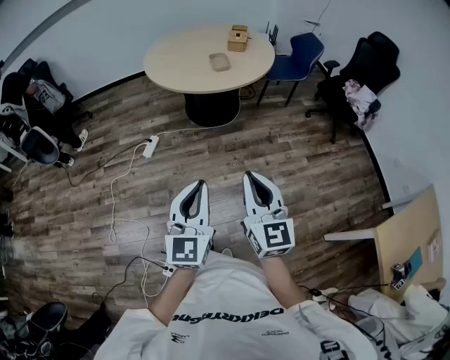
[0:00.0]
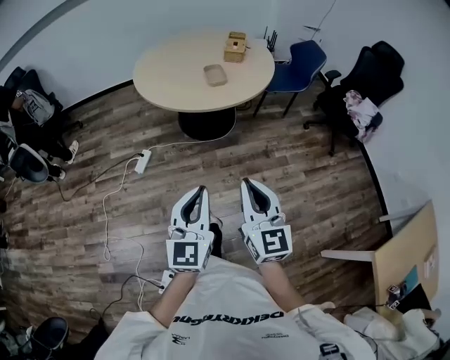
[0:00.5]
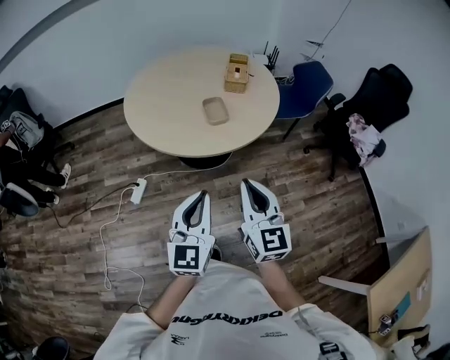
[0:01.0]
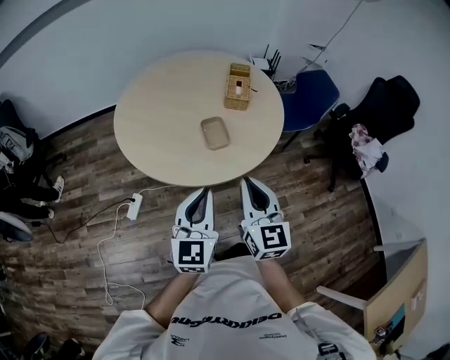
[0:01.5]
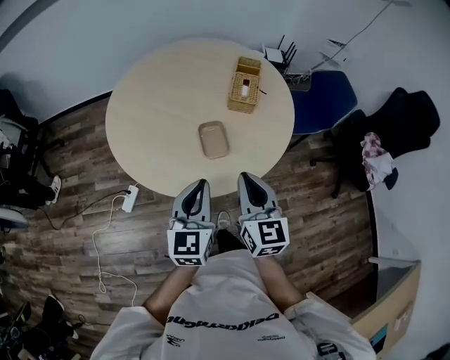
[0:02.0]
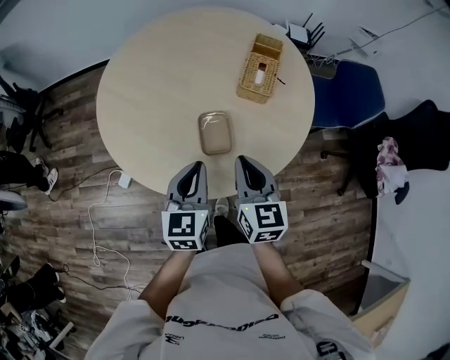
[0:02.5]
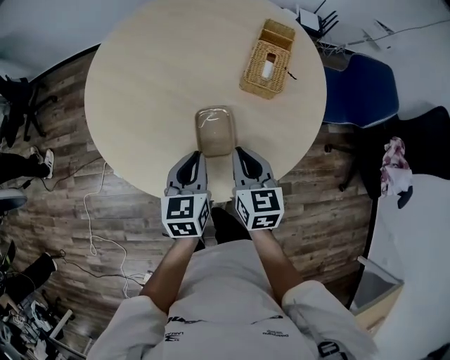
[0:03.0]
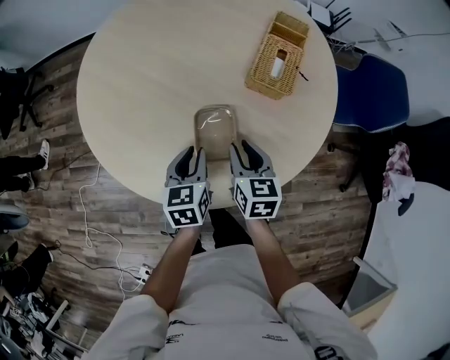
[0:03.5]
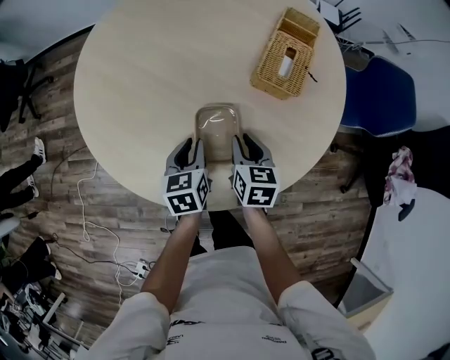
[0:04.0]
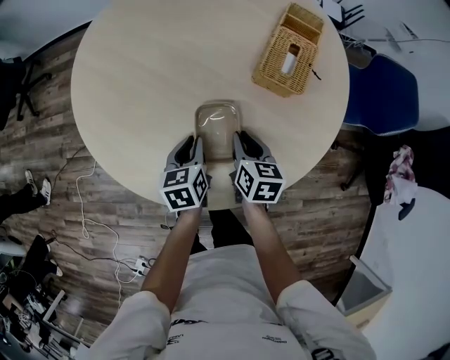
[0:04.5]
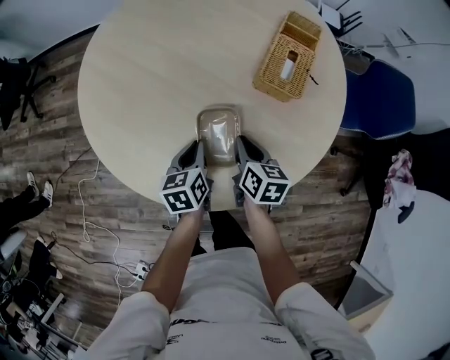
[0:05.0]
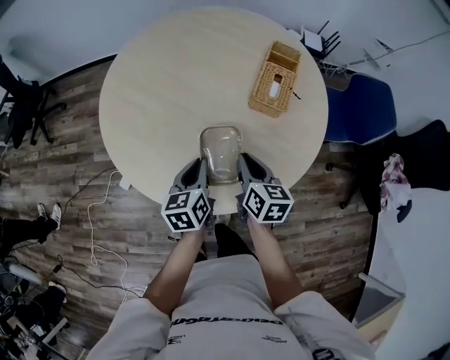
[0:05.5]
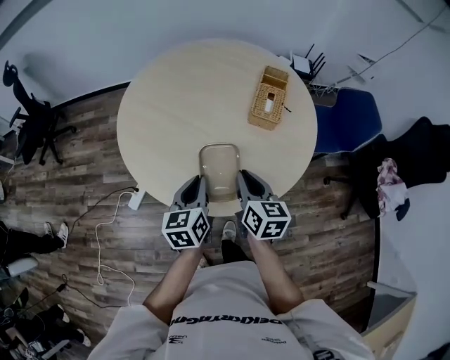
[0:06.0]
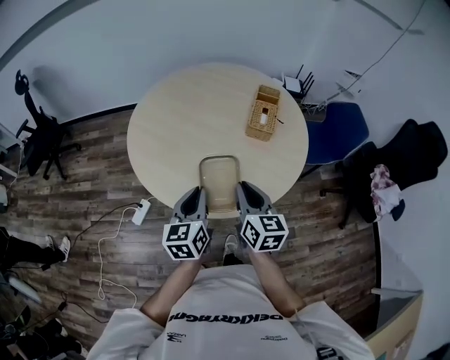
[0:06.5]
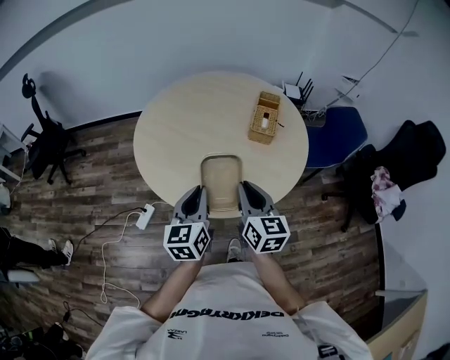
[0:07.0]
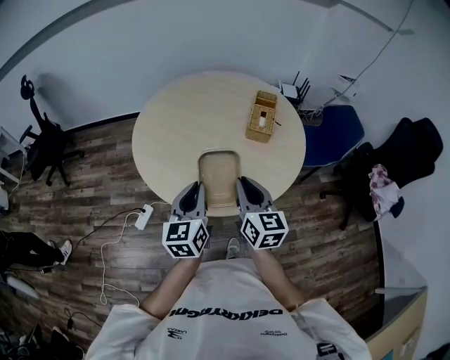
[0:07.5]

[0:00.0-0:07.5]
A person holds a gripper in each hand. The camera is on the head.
0:00.0 to 0:02.0: Both grippers are carried forward, some 70 cm.
0:02.0 to 0:04.0: The two grippers go roughly 35 cm downward and forward. The right gripper angles its fingers downward, by roughly 30 degrees, and opens up. The left gripper tips its fingers downward by roughly 30 degrees.
0:04.0 to 0:05.5: Both grippers move upward, some 10 cm.
0:05.5 to 0:07.5: Both grippers travel together upward and backward, some 25 cm. The right gripper swivels roughly 20 degrees, while the left gripper rotates roughly 30 degrees.

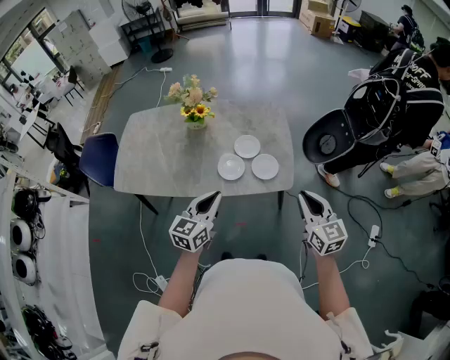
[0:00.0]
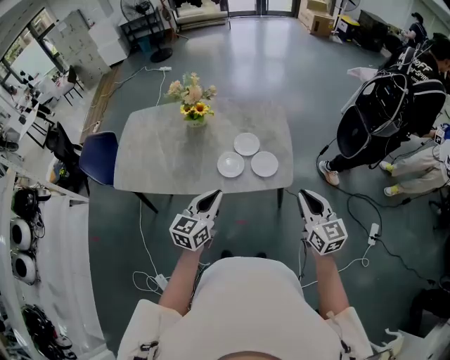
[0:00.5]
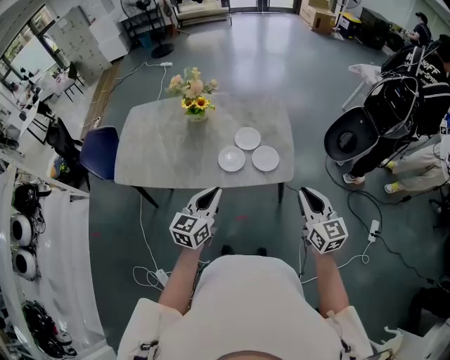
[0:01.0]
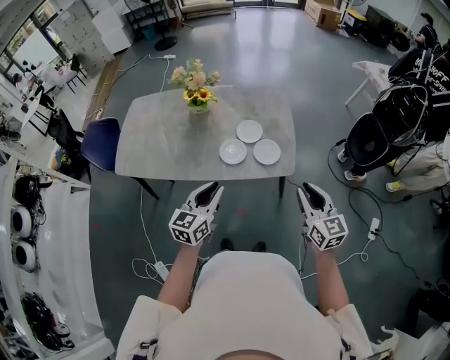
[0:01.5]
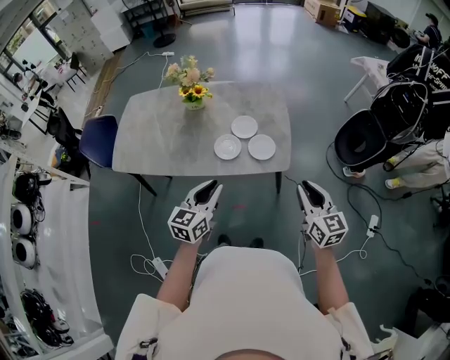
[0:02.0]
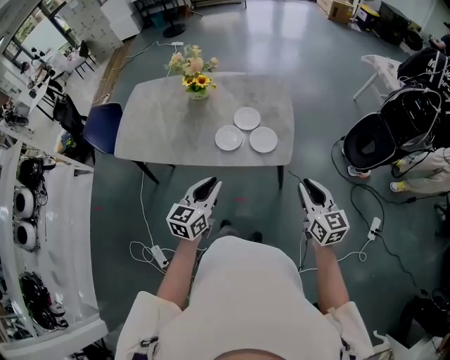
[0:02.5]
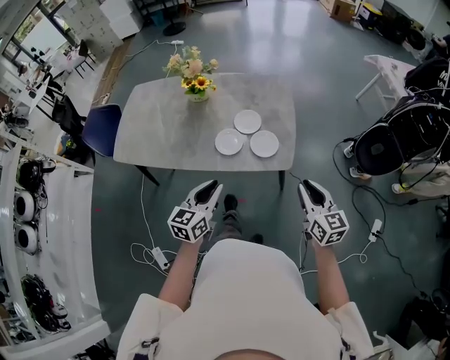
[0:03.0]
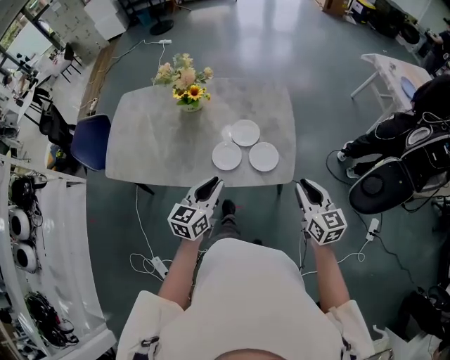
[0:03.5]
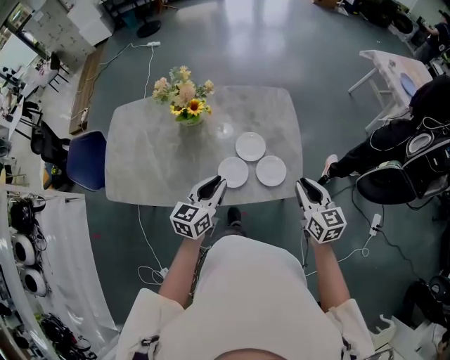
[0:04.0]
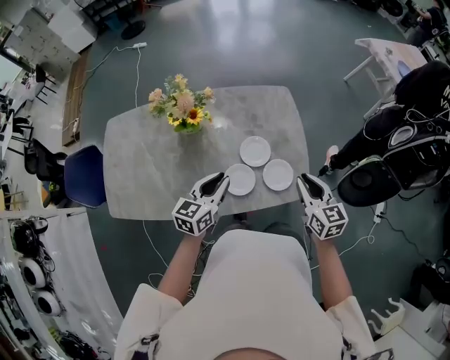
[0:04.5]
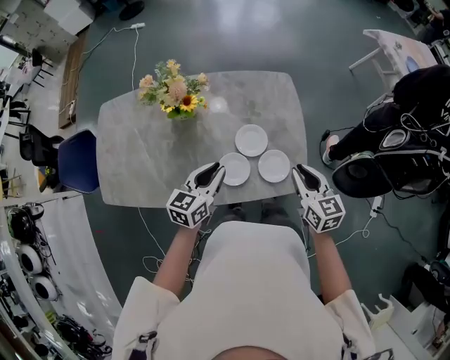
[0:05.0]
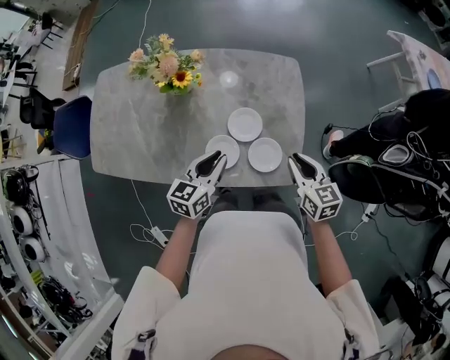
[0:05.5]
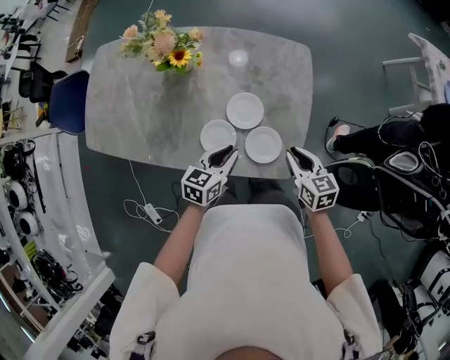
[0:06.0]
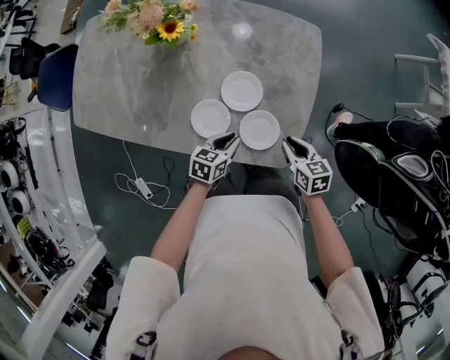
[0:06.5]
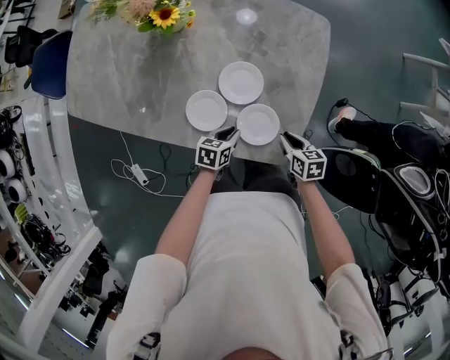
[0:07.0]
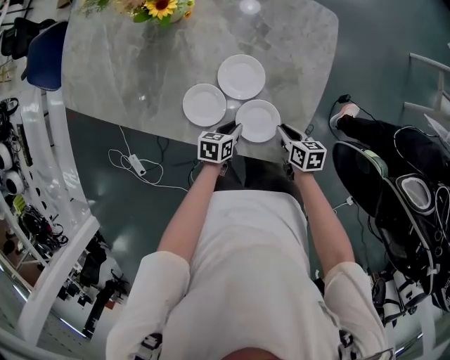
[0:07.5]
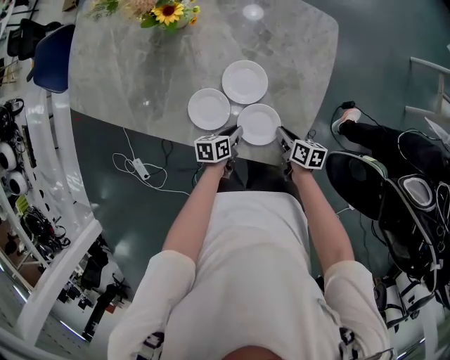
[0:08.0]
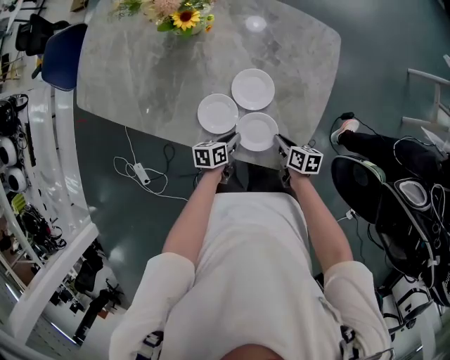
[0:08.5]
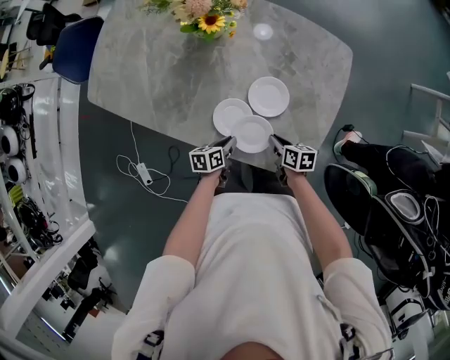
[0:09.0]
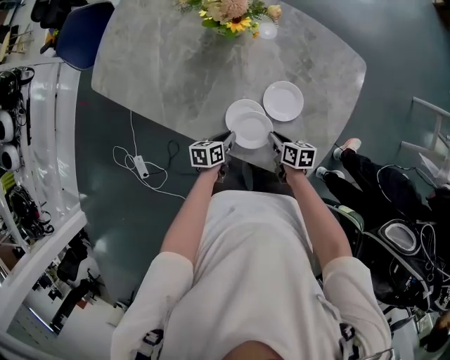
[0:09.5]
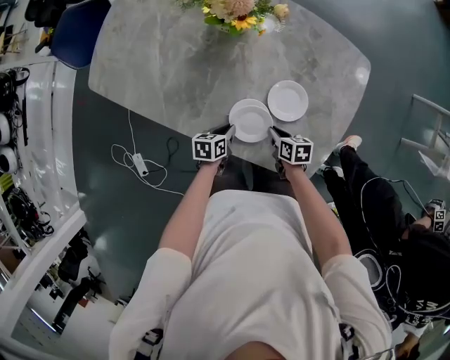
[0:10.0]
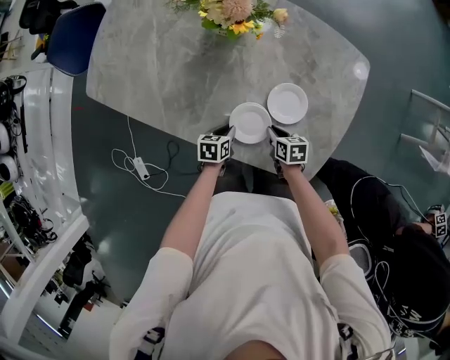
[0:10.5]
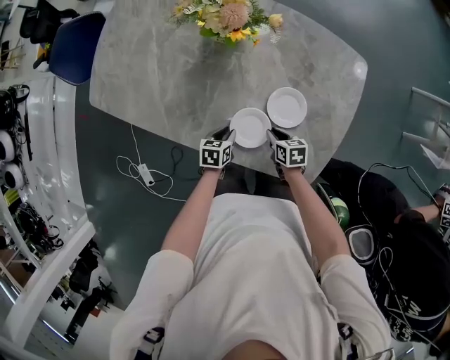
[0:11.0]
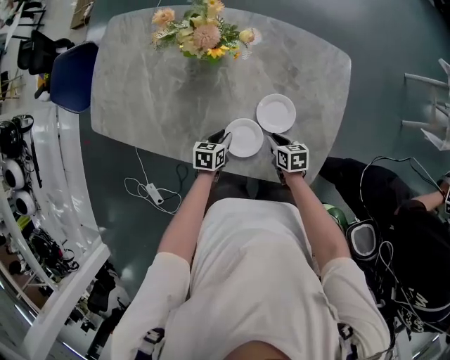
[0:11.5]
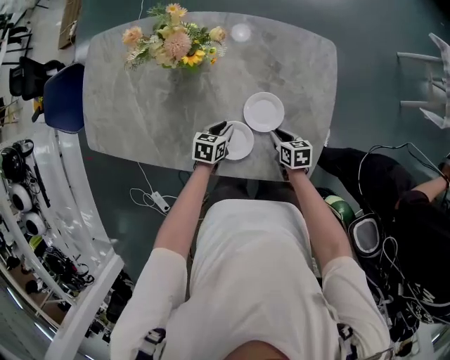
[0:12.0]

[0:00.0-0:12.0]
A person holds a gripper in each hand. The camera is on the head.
0:00.0 to 0:02.0: The left gripper changes place by some 5 cm. The right gripper moves some 5 cm.
0:02.0 to 0:04.0: Both grippers travel together forward, approximately 25 cm.
0:04.0 to 0:06.0: The left gripper moves downward, to the right and forward, approximately 20 cm. Meanwhile the right gripper shifts approximately 20 cm downward and forward, and rotates some 20 degrees.
0:06.0 to 0:08.0: Both grippers move downward, some 25 cm. The right gripper rotates approximately 40 degrees. The left gripper changes its angle by approximately 40 degrees.
0:08.0 to 0:10.0: The grippers both shift to the left by approximately 15 cm. The right gripper changes its angle by roughly 20 degrees.
0:10.0 to 0:12.0: The left gripper travels forward and to the right by roughly 10 cm, and turns by approximately 30 degrees; the right gripper travels to the right by approximately 10 cm.

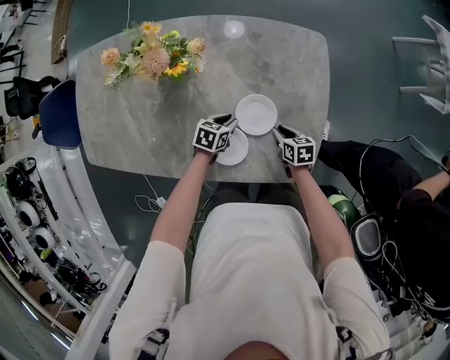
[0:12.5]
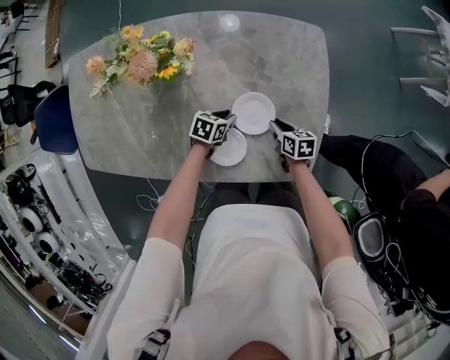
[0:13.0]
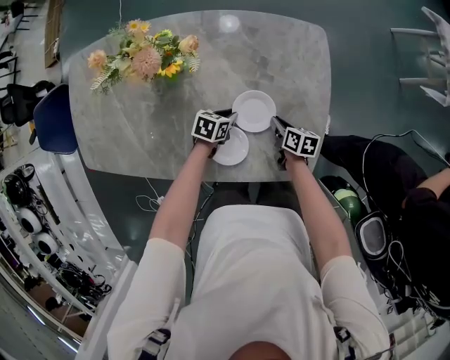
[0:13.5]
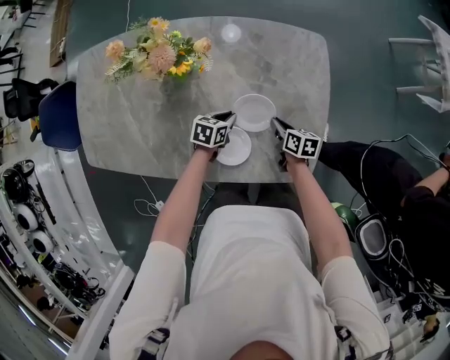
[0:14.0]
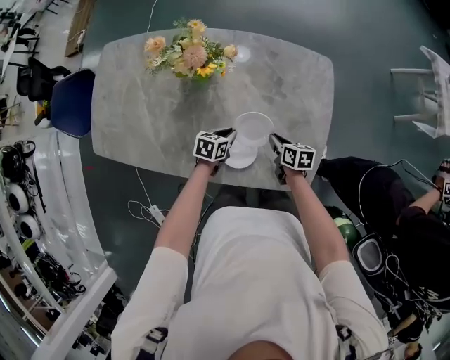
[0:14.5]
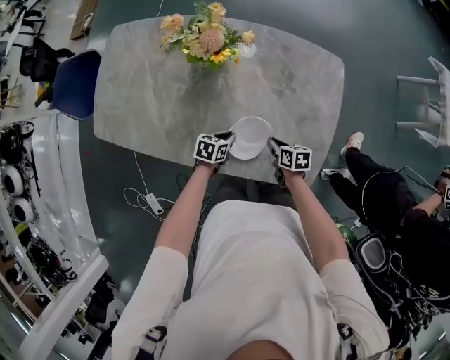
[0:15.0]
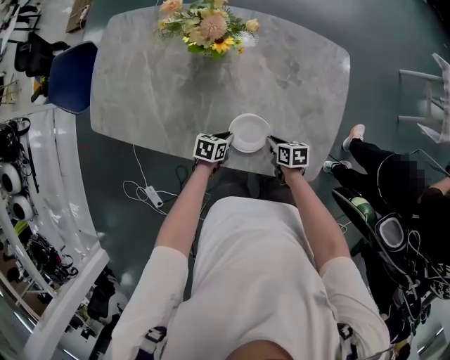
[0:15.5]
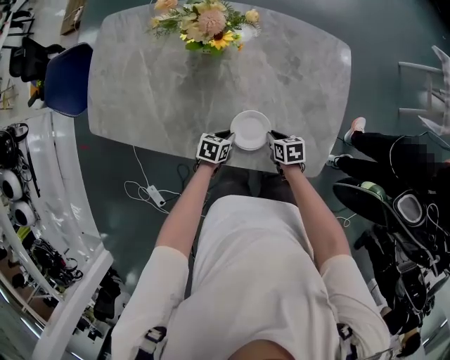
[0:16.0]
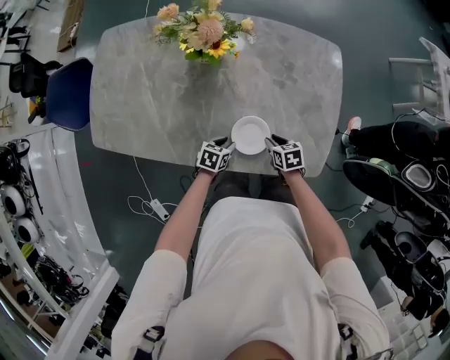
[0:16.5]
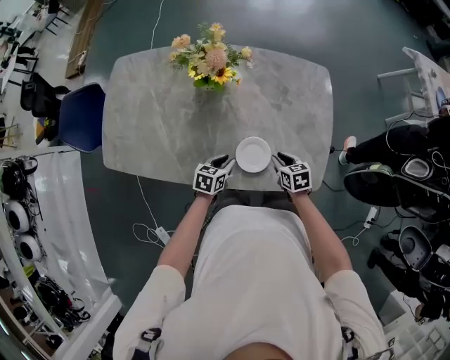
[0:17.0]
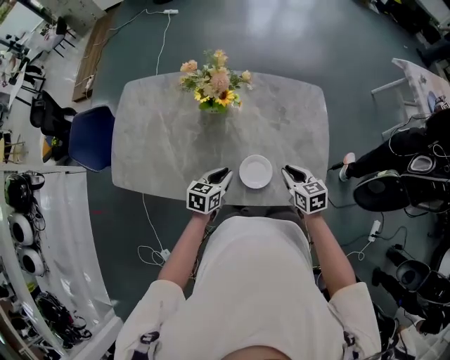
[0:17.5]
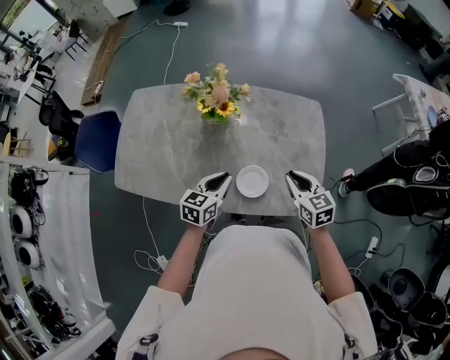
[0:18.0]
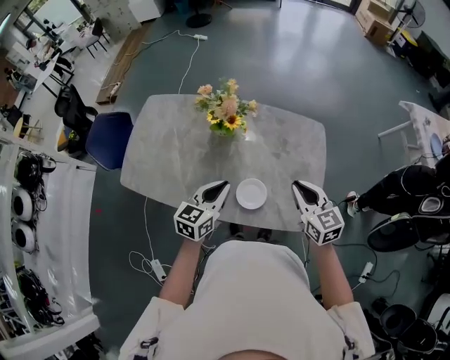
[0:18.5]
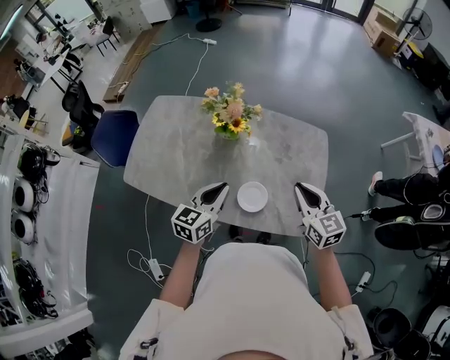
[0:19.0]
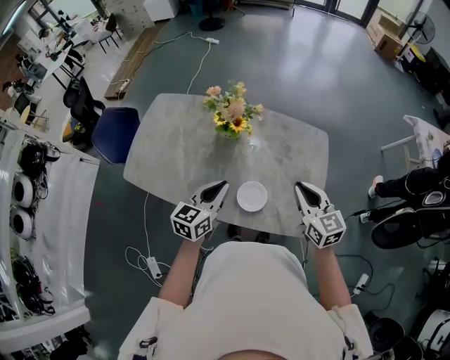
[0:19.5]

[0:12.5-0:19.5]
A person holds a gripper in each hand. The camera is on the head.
0:12.5 to 0:14.5: The right gripper shifts some 10 cm to the left and upward, while the left gripper changes place by approximately 5 cm.
0:14.5 to 0:16.0: Both grippers travel together backward, downward and to the left, approximately 10 cm. The right gripper rotates about 20 degrees.
0:16.0 to 0:17.5: The two grippers go roughly 20 cm upward. The right gripper turns by roughly 30 degrees; the left gripper changes its angle by some 30 degrees.
0:17.5 to 0:19.5: The grippers both shift upward by some 20 cm. The right gripper changes its angle by approximately 30 degrees. Meanwhile the left gripper rotates about 30 degrees.
